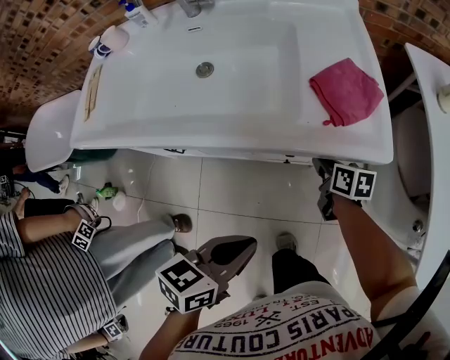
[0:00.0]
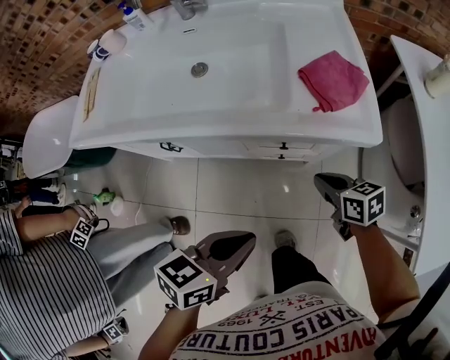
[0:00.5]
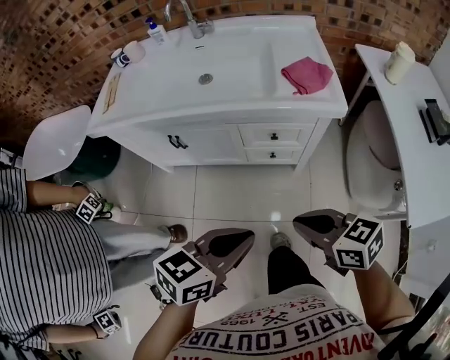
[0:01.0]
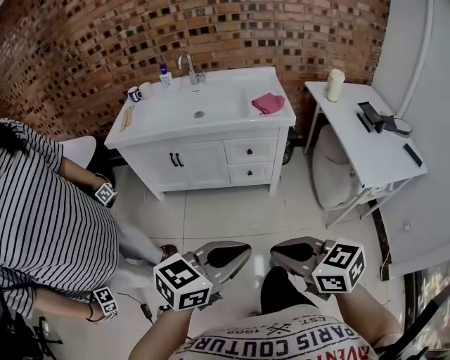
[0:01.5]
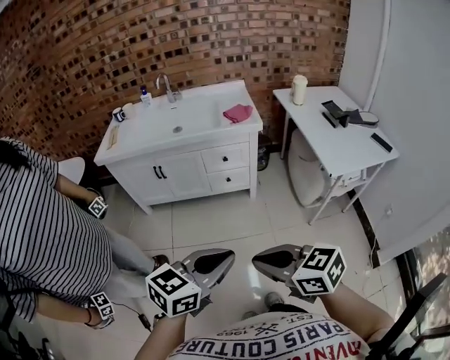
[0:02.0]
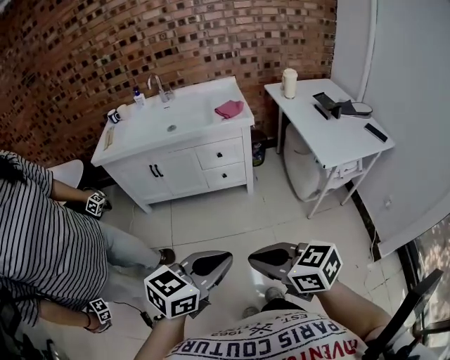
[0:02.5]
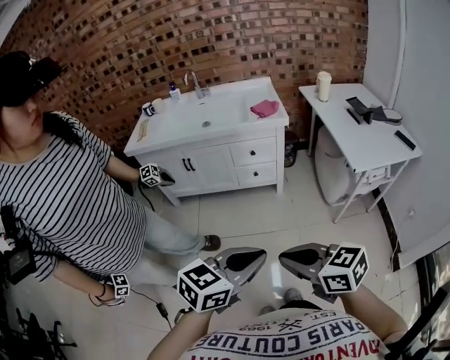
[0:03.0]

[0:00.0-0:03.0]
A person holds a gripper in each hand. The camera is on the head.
0.0 to 1.5 s: Both grippers are carried backward, about 50 cm. The right gripper moves upward, some 35 cm, and rotates about 40 degrees; the left gripper goes about 20 cm upward, and rotates roughly 30 degrees.
1.5 to 3.0 s: The left gripper travels backward and to the right by approximately 15 cm; the right gripper shifts roughly 15 cm backward.

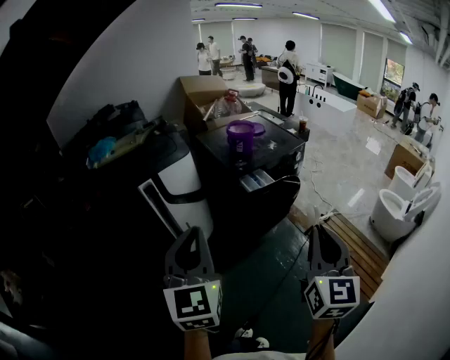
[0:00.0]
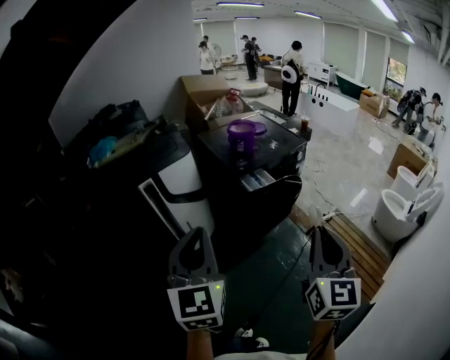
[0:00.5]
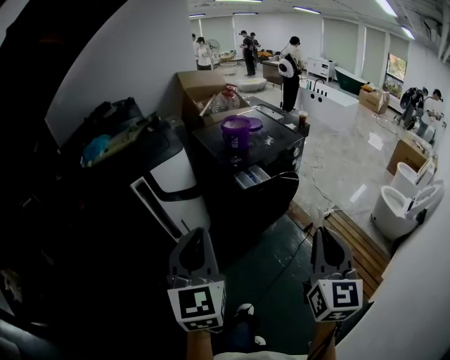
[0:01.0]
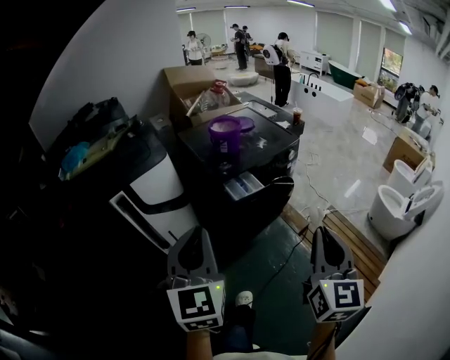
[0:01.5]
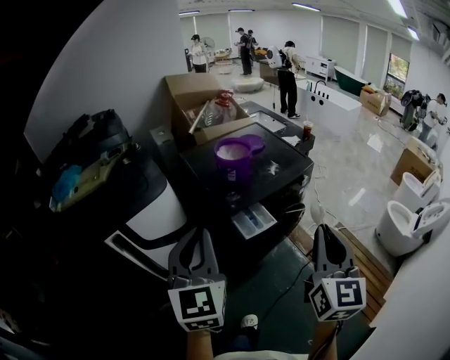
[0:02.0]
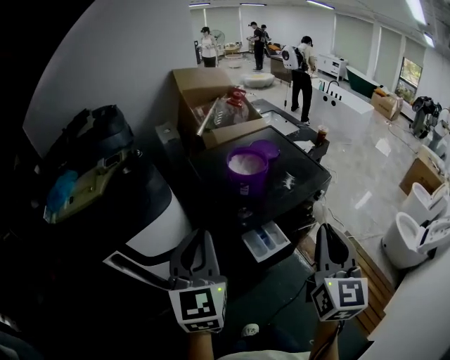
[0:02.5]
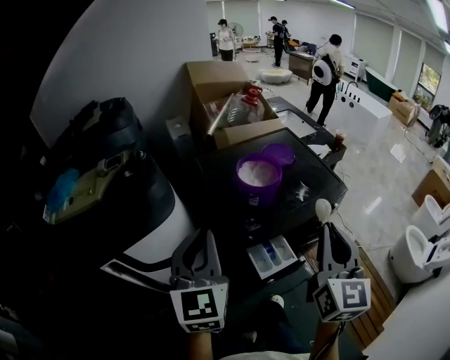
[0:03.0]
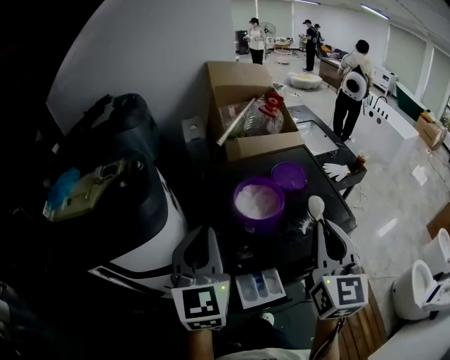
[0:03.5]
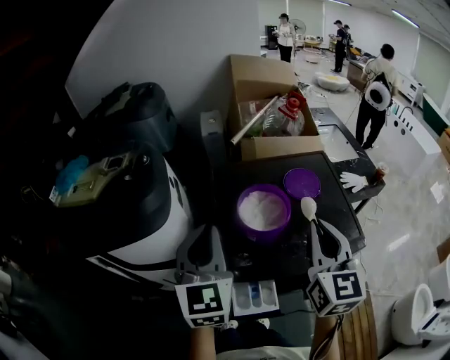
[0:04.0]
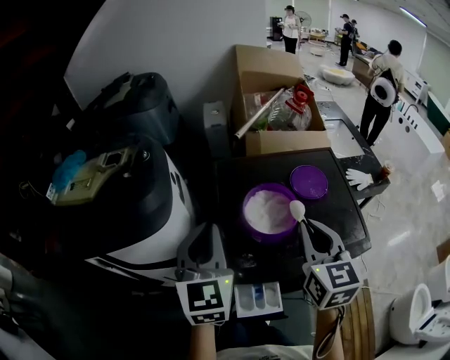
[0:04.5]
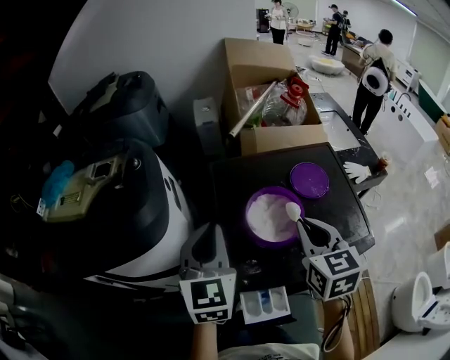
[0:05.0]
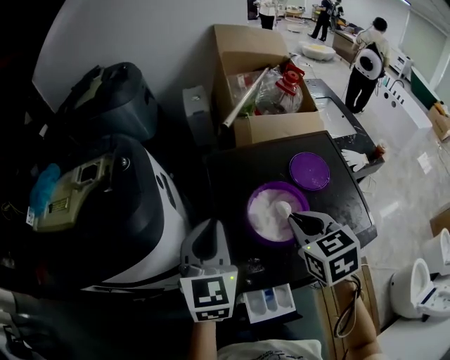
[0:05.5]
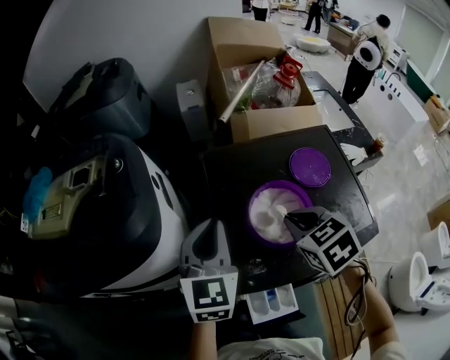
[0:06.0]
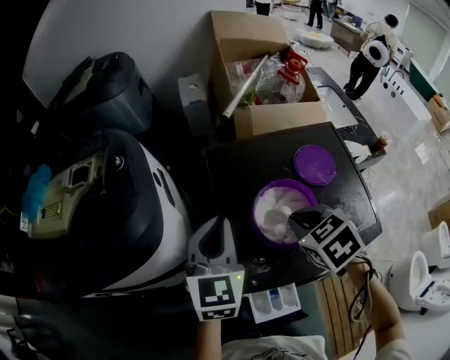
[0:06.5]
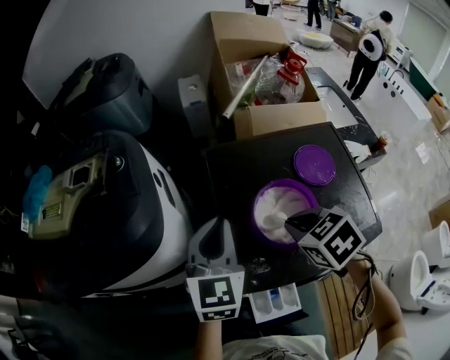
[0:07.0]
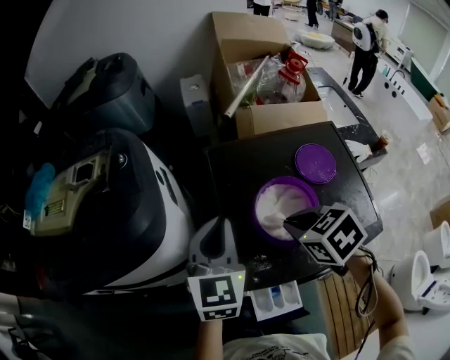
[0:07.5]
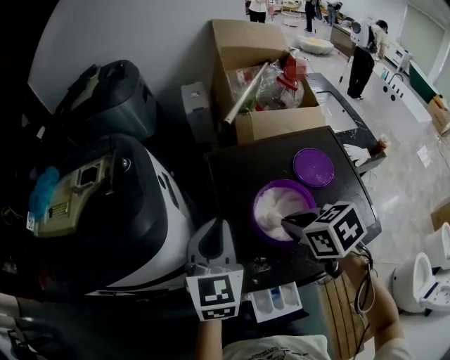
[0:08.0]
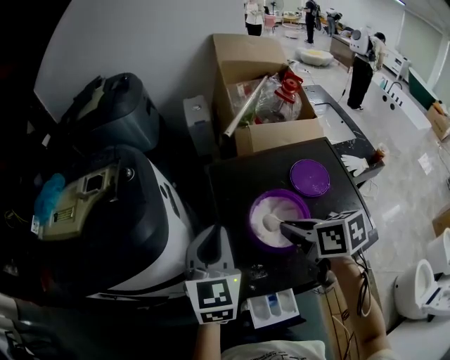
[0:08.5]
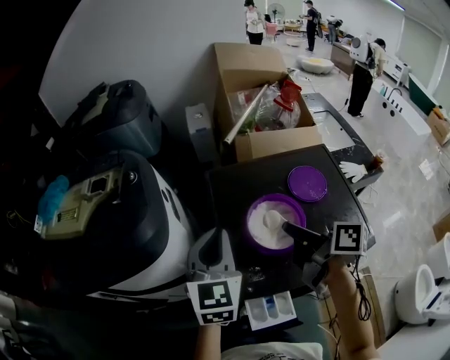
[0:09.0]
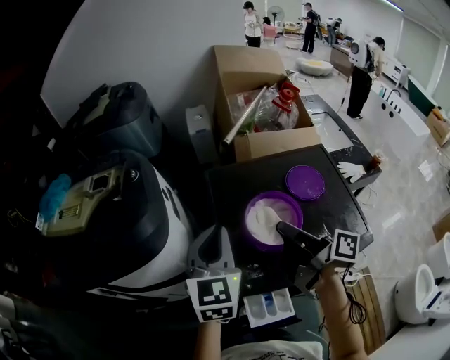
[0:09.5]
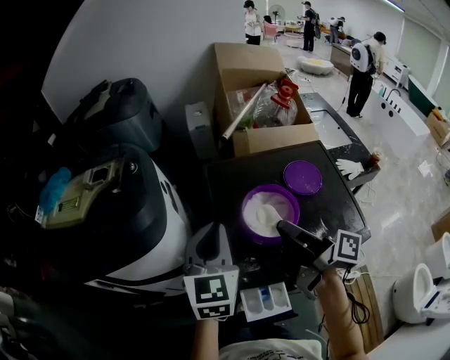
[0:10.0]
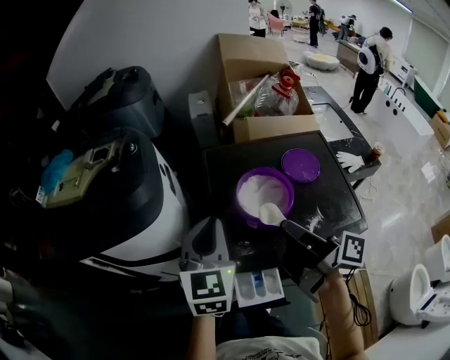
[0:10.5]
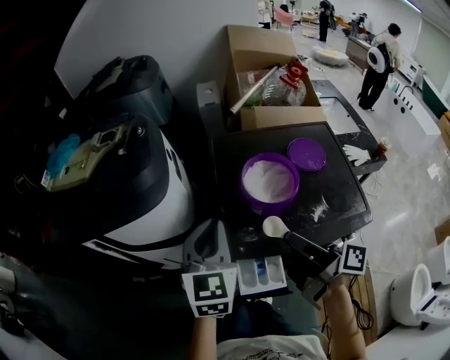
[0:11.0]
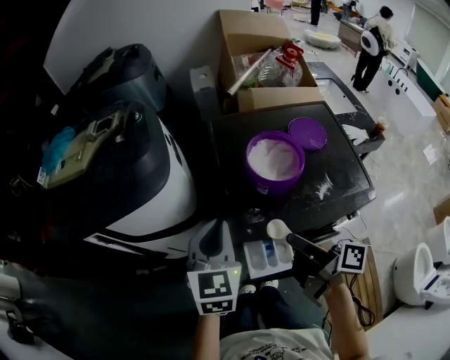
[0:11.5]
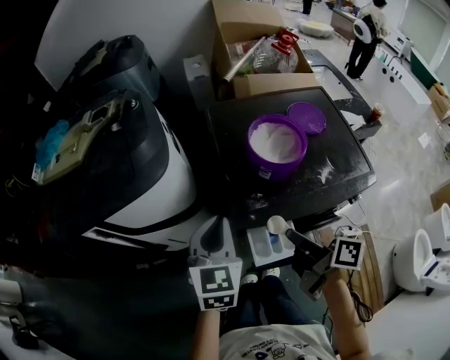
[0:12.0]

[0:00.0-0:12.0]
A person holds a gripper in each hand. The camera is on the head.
0.0 to 2.0 s: Both grippers move forward, some 30 cm.
2.0 to 4.0 s: The left gripper moves roughly 30 cm, and turns by about 20 degrees, while the right gripper changes place by roughly 40 cm, and changes its angle by about 30 degrees.
4.0 to 6.0 s: The right gripper shifts approximately 20 cm downward, forward and to the left, and tips its fingers downward by approximately 50 degrees, while the left gripper is displaced forward and downward by roughly 15 cm.
6.0 to 8.0 s: The grippers move only a little.
8.0 to 10.0 s: The left gripper ends up roughly 5 cm from where it was, while the right gripper goes about 5 cm upward, and tips its fingers upward by some 60 degrees.
10.0 to 12.0 s: The left gripper shifts some 15 cm backward, downward and to the left; the right gripper moves backward and downward, roughly 20 cm, and changes its angle by approximately 20 degrees.

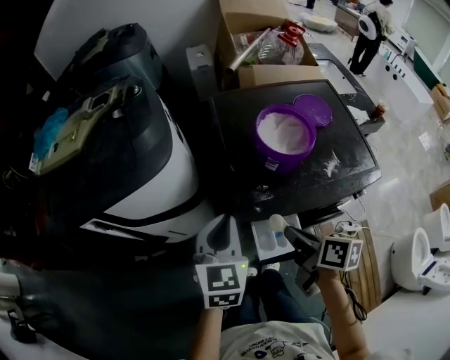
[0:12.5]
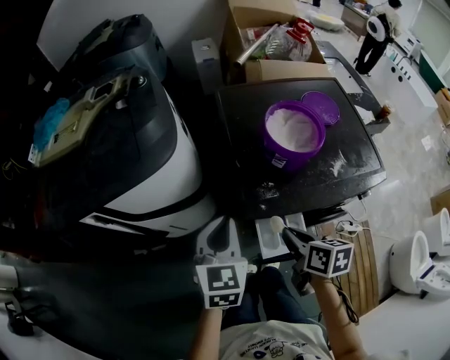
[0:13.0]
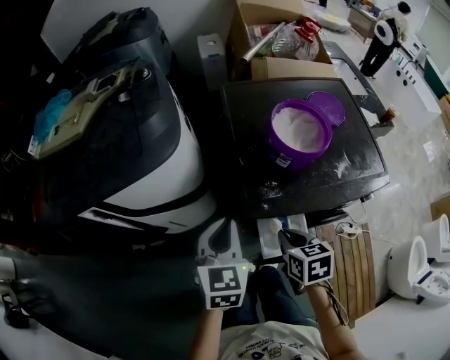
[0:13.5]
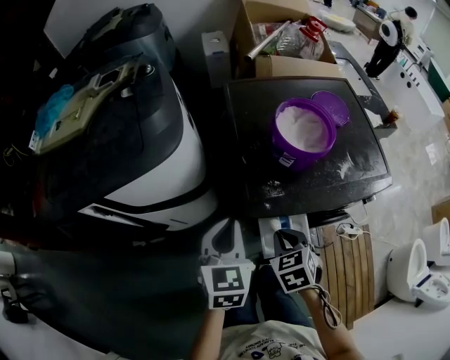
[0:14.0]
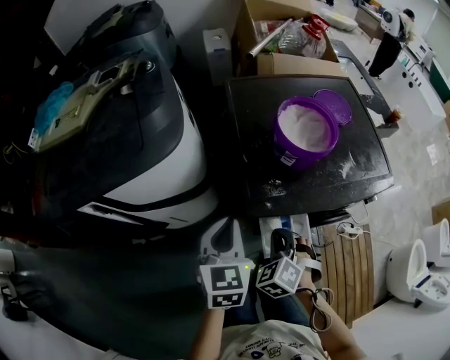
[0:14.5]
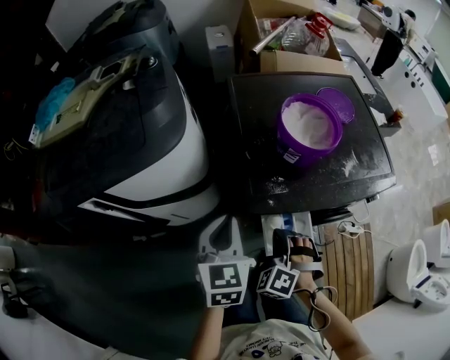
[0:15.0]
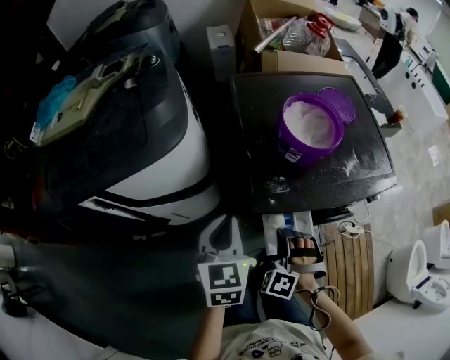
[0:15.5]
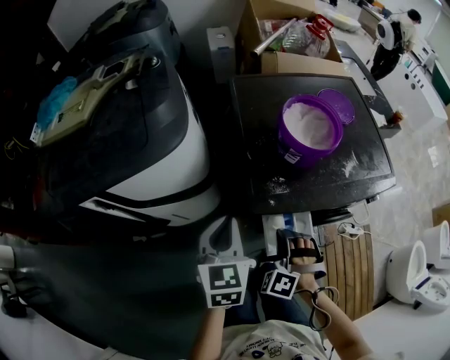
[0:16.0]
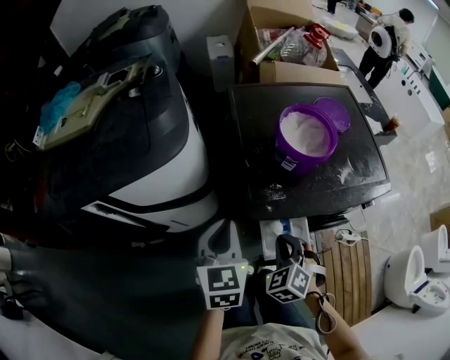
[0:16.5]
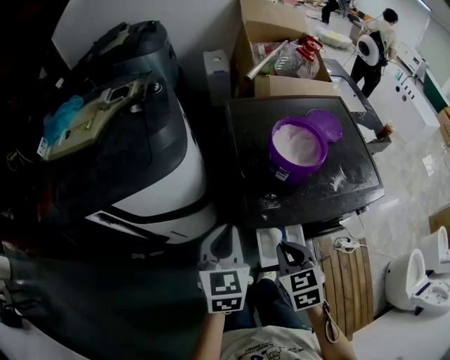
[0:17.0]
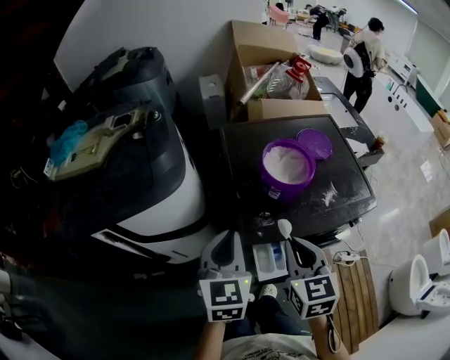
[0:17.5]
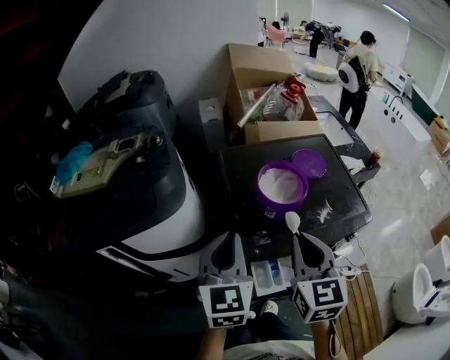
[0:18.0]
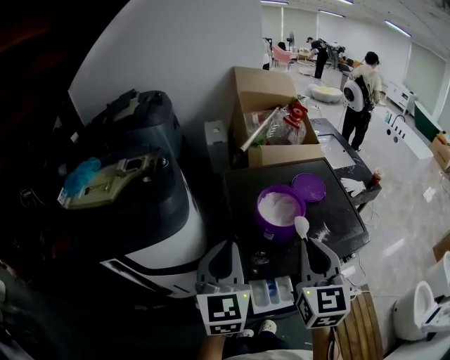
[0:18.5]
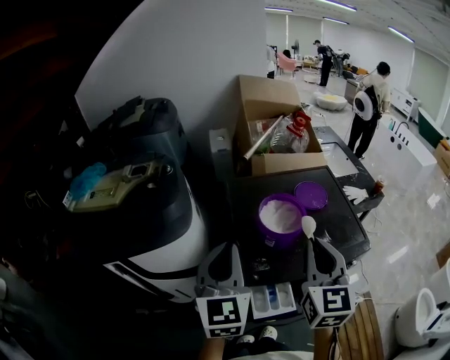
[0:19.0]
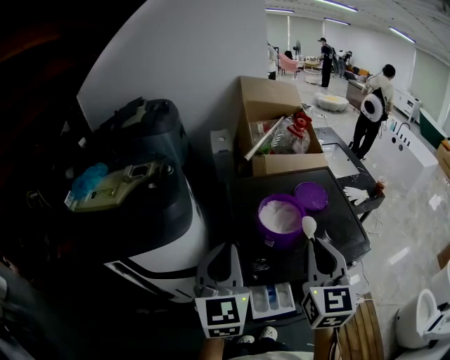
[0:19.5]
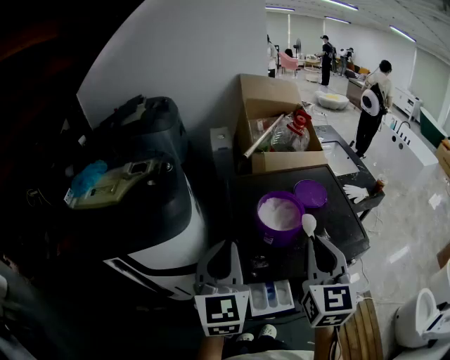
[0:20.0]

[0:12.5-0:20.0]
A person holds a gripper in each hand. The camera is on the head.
12.5 to 14.5 s: The left gripper moves approximately 5 cm; the right gripper shifts about 10 cm downward and to the left, and twists approximately 90 degrees counterclockwise, seen from behind.
16.5 to 18.0 s: The right gripper heads upward, covering about 25 cm, and points its fingers approximately 40 degrees further upward. Meanwhile the left gripper travels upward by about 15 cm.
18.0 to 20.0 s: Both grippers move upward, about 5 cm.

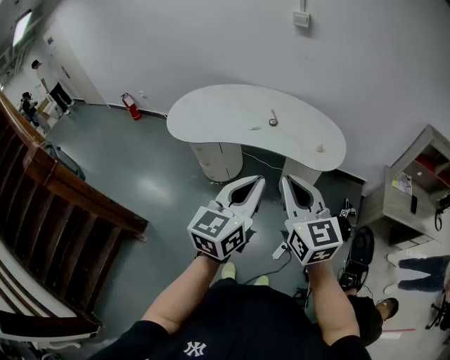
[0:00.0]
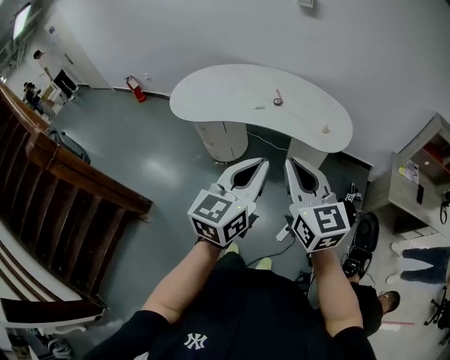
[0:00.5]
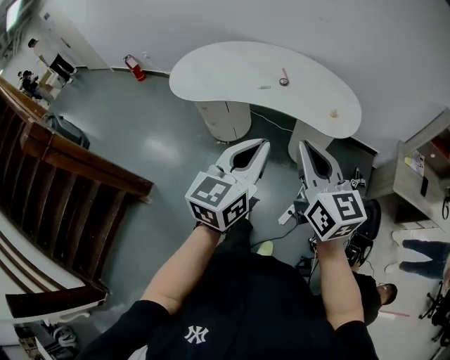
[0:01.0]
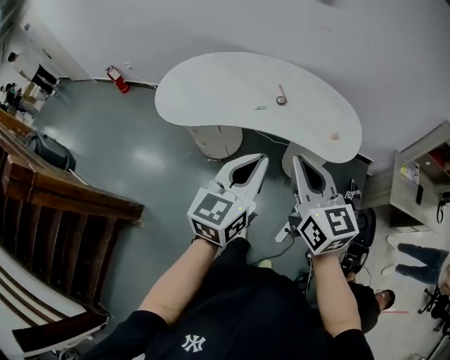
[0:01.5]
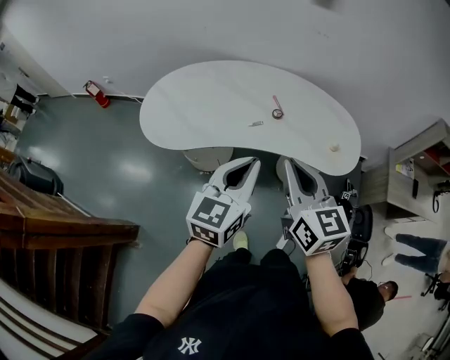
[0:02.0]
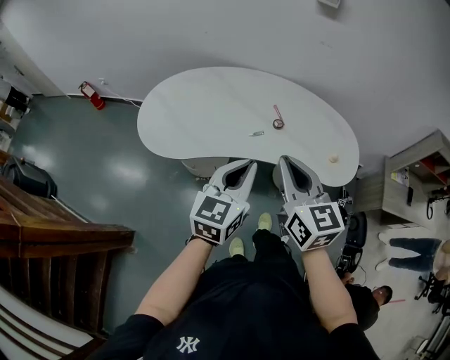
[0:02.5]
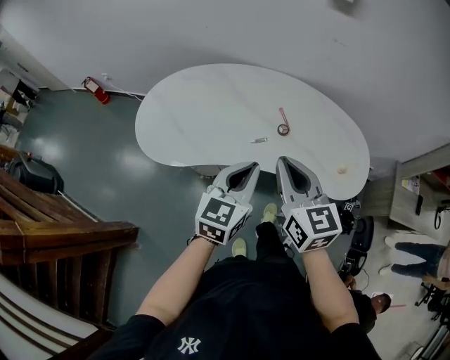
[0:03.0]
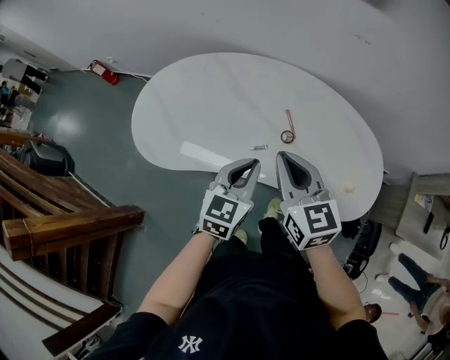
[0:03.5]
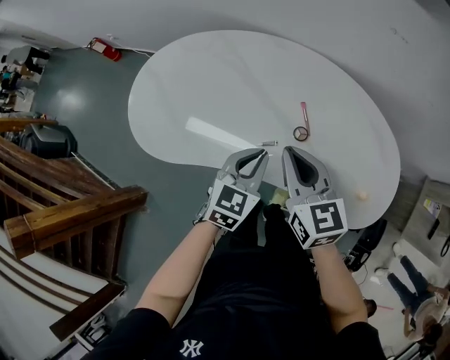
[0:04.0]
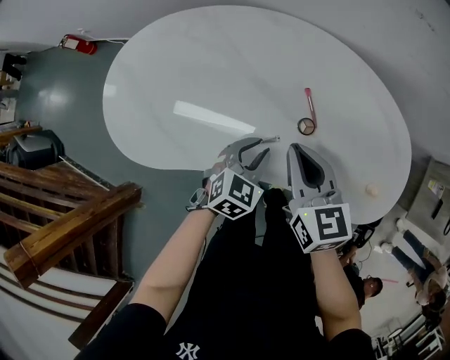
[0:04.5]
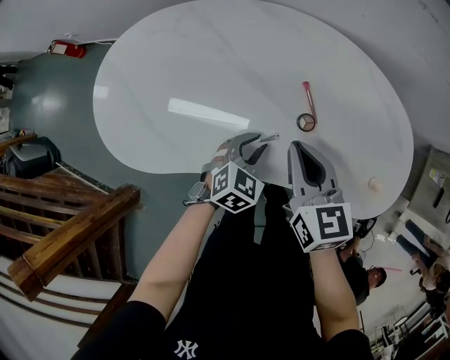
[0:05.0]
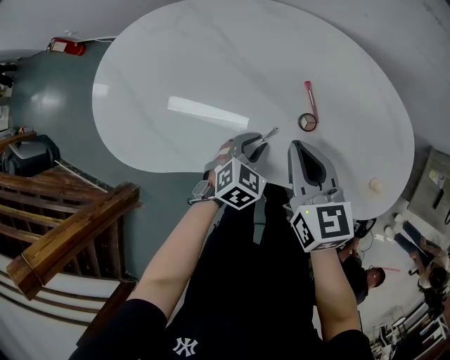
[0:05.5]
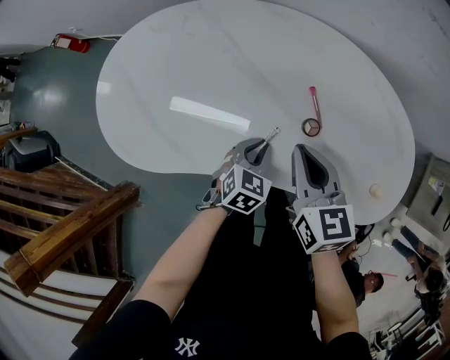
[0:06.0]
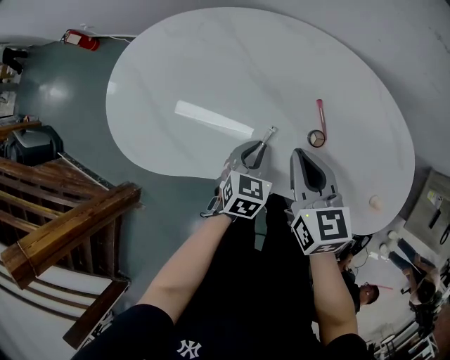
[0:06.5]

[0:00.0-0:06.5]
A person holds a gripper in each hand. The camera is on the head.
0.0 to 2.0 s: The grippers both shift forward and to the left by about 25 cm.
2.0 to 4.5 s: The left gripper goes about 40 cm downward and forward, and points its fingers some 40 degrees further downward; the right gripper travels forward and downward by roughly 40 cm.
4.5 to 6.5 s: The left gripper changes place by some 5 cm.
